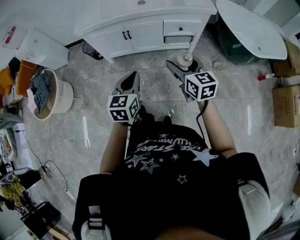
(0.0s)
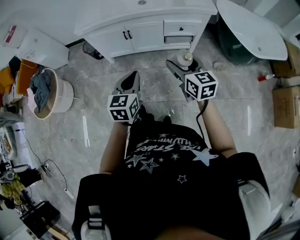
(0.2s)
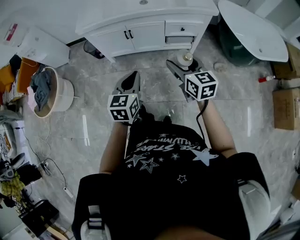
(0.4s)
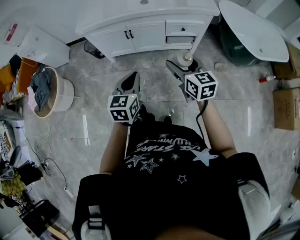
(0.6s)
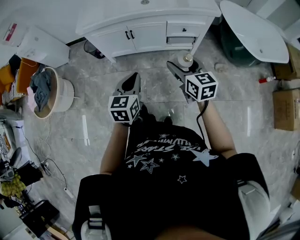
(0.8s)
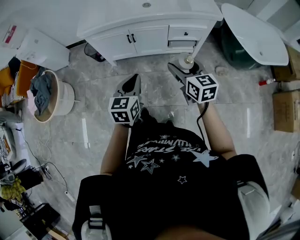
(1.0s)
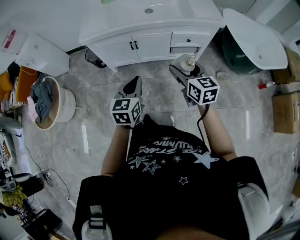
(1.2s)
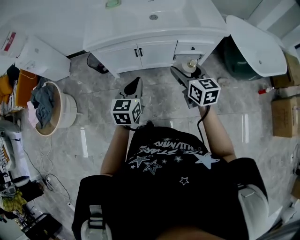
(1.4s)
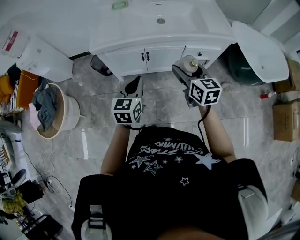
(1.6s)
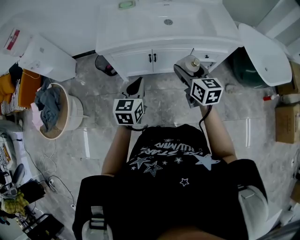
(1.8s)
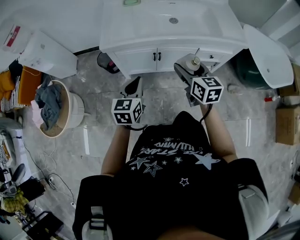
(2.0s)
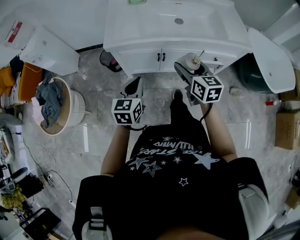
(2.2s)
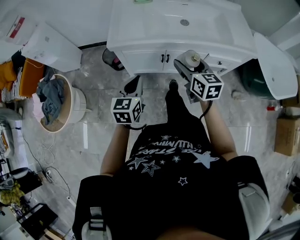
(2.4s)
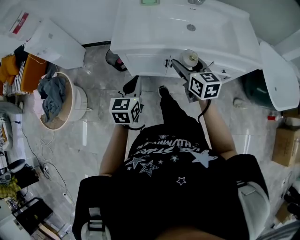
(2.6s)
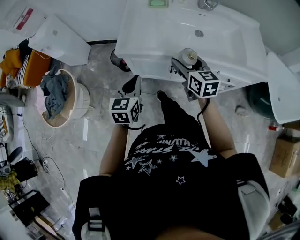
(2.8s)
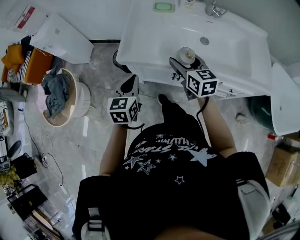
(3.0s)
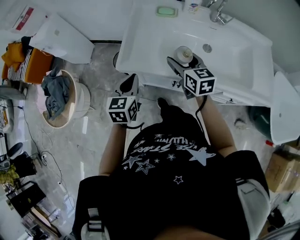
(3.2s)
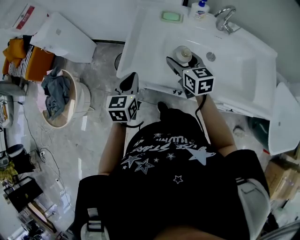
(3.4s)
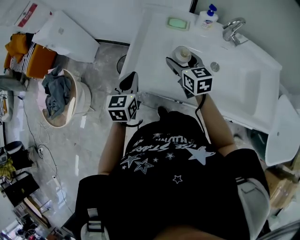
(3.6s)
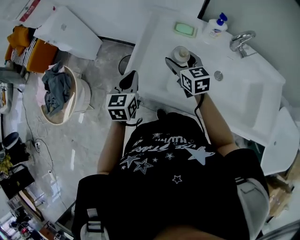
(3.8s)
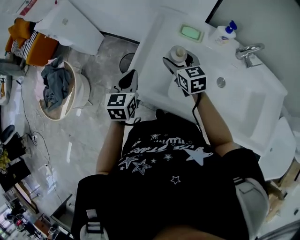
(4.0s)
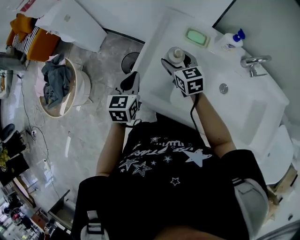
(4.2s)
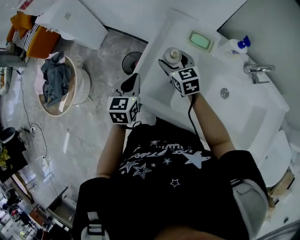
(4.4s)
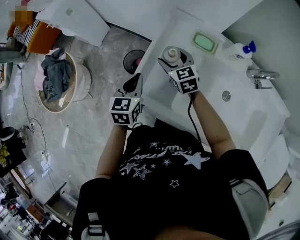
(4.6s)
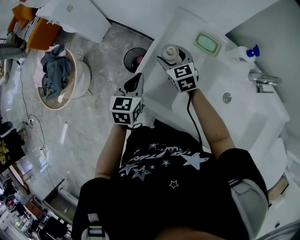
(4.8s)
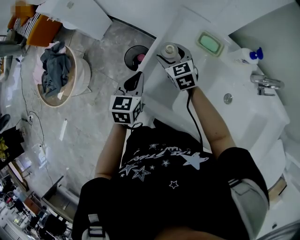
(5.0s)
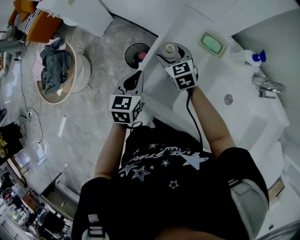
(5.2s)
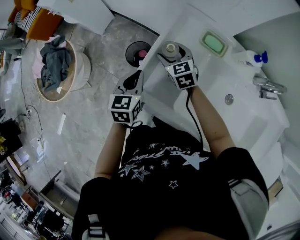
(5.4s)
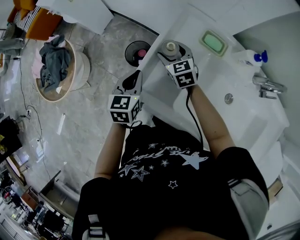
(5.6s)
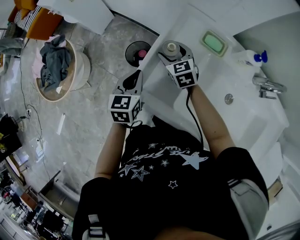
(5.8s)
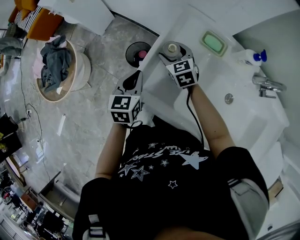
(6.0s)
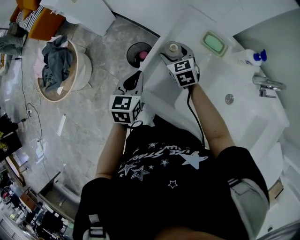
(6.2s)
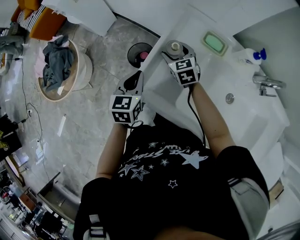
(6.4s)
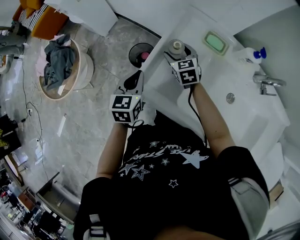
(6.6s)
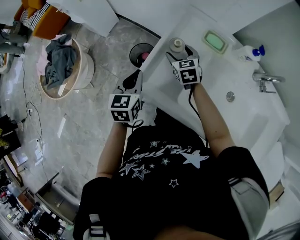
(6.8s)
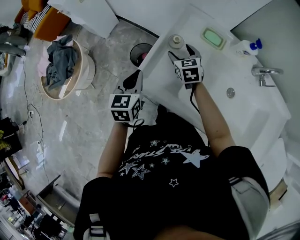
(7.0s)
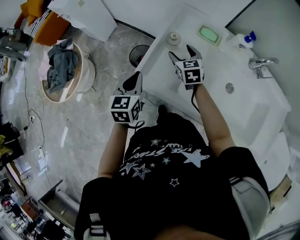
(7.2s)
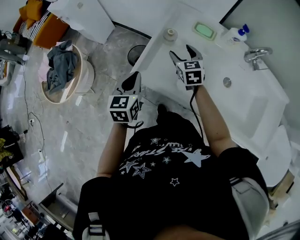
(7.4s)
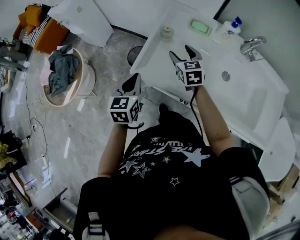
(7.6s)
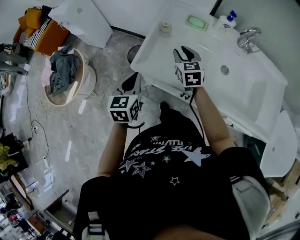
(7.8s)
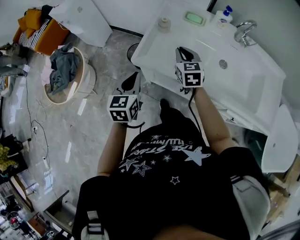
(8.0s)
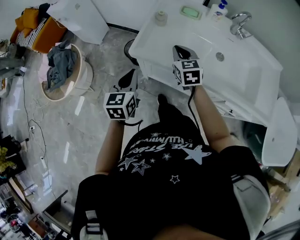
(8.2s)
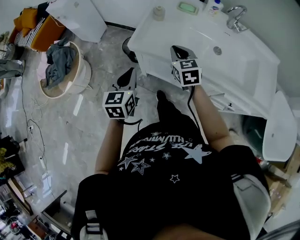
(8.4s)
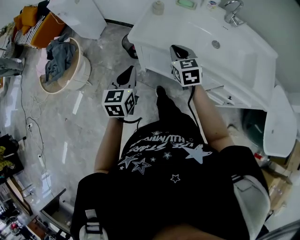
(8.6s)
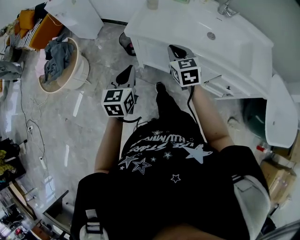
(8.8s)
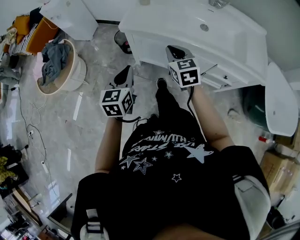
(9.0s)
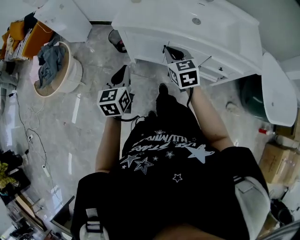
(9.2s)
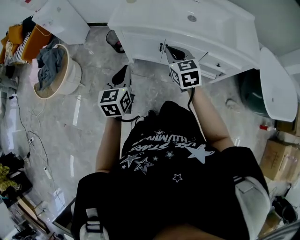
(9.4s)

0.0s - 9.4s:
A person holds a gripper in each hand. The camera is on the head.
0.0s - 1.6s: The two grippers go approximately 20 cm forward and to the left.
1.6s - 3.2s: The grippers both shift forward and to the left by approximately 35 cm. The right gripper turns by roughly 20 degrees.
3.2s - 4.8s: Both grippers move forward, approximately 25 cm. The right gripper rotates approximately 30 degrees.
4.8s - 6.2s: The grippers stay close to where they were, moving slightly.
6.2s - 7.8s: Both grippers move backward and upward, some 20 cm. The right gripper swivels about 20 degrees, and closes.
7.8s - 9.4s: Both grippers travel together backward, about 35 cm. The right gripper closes.

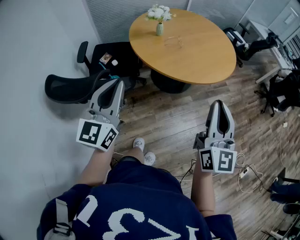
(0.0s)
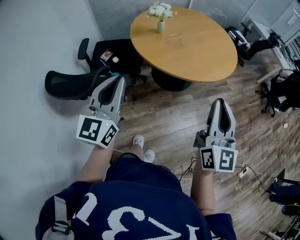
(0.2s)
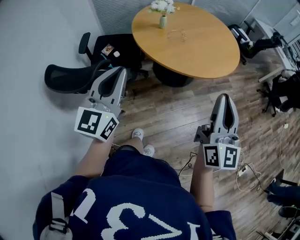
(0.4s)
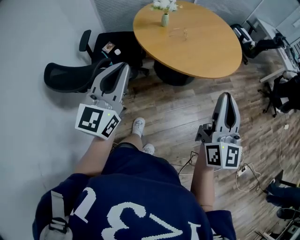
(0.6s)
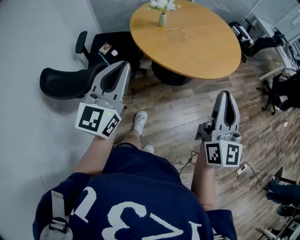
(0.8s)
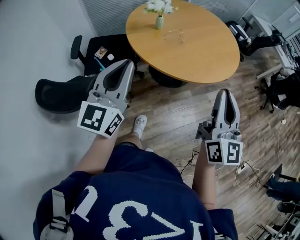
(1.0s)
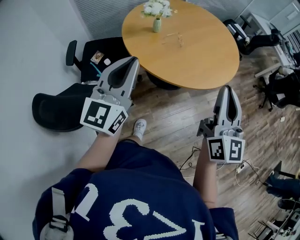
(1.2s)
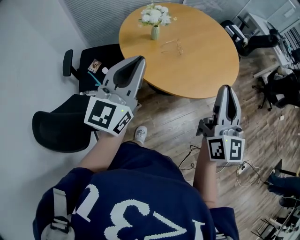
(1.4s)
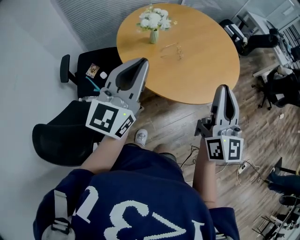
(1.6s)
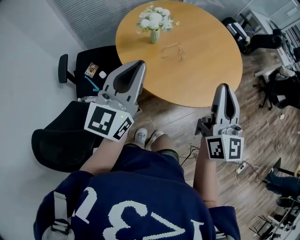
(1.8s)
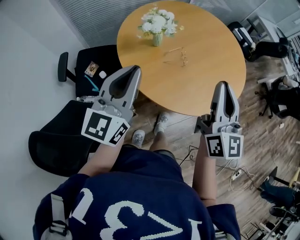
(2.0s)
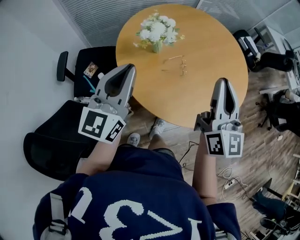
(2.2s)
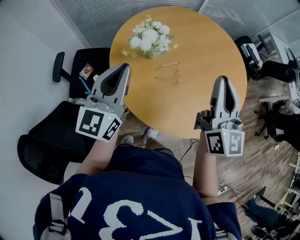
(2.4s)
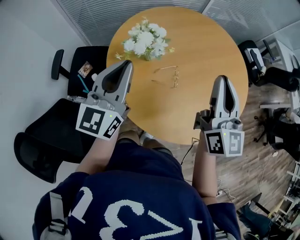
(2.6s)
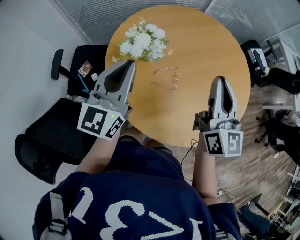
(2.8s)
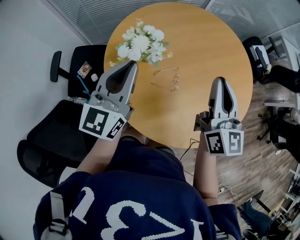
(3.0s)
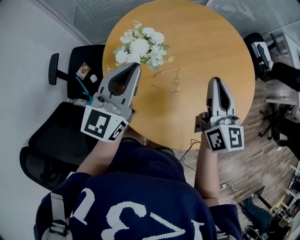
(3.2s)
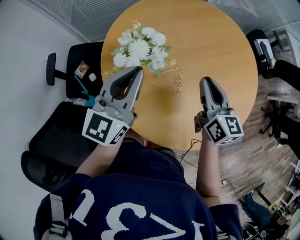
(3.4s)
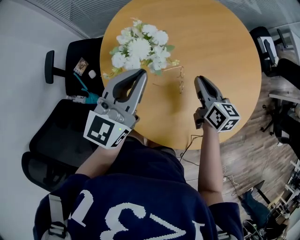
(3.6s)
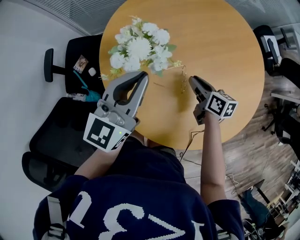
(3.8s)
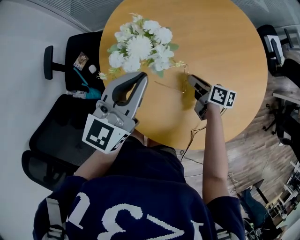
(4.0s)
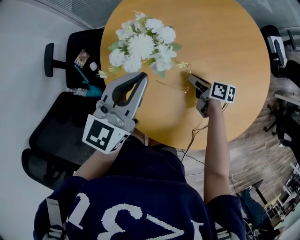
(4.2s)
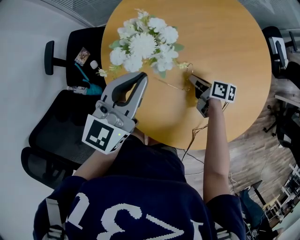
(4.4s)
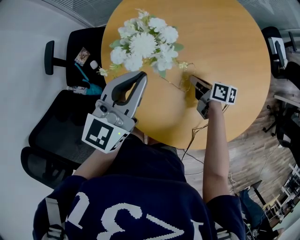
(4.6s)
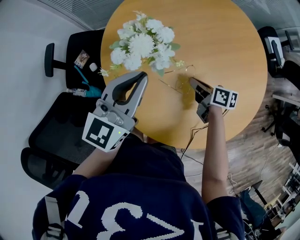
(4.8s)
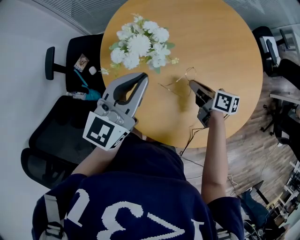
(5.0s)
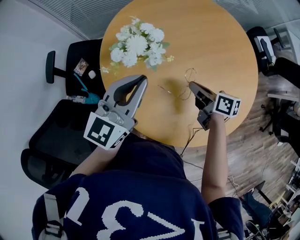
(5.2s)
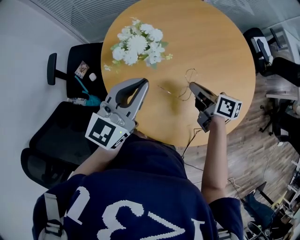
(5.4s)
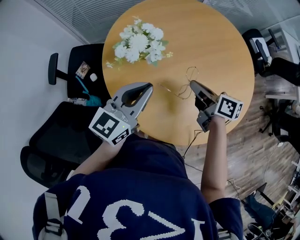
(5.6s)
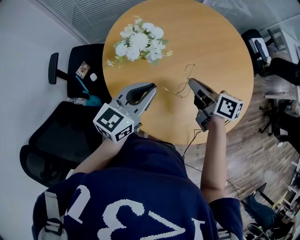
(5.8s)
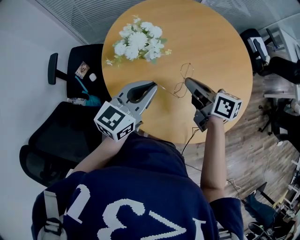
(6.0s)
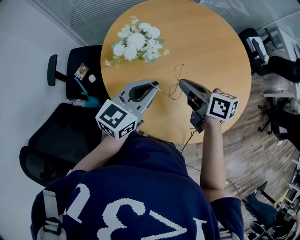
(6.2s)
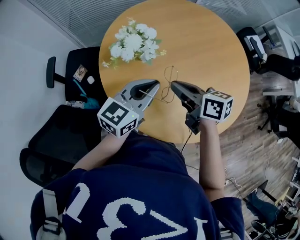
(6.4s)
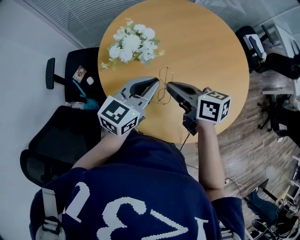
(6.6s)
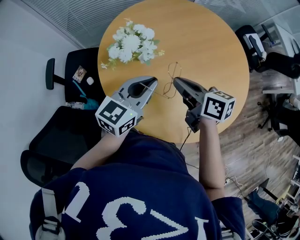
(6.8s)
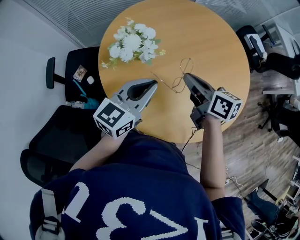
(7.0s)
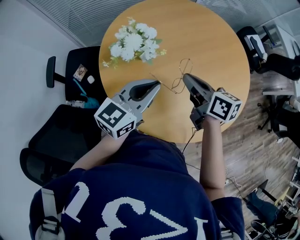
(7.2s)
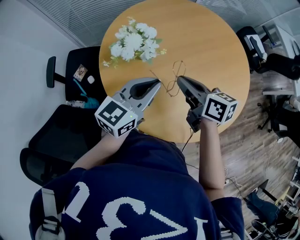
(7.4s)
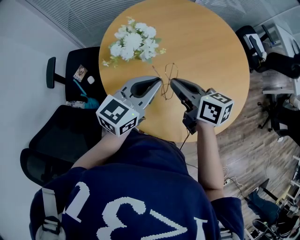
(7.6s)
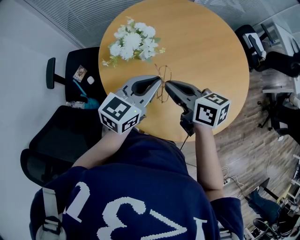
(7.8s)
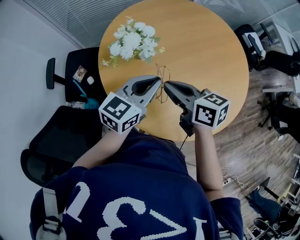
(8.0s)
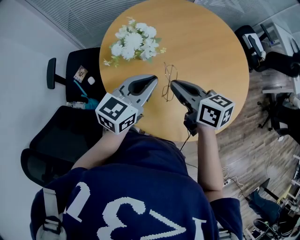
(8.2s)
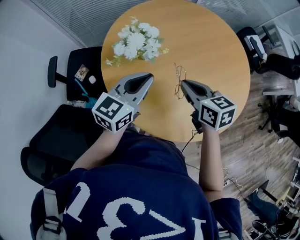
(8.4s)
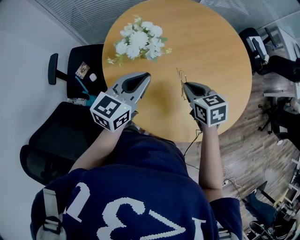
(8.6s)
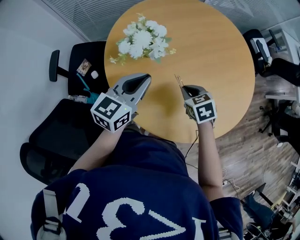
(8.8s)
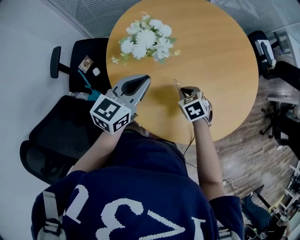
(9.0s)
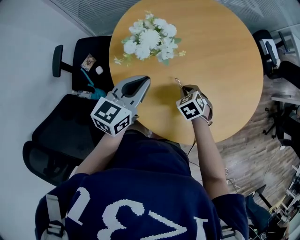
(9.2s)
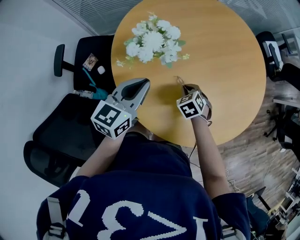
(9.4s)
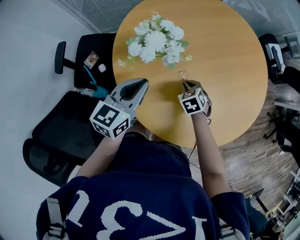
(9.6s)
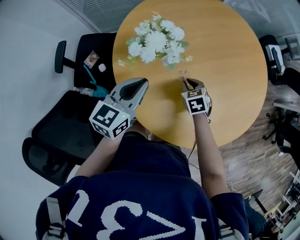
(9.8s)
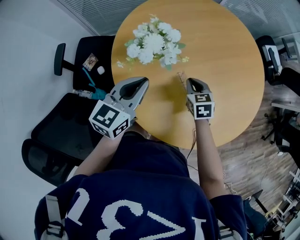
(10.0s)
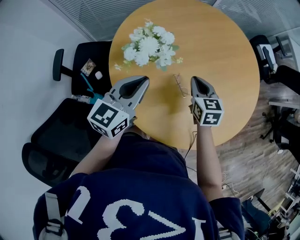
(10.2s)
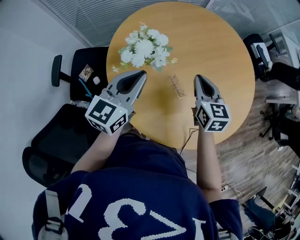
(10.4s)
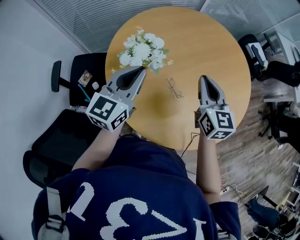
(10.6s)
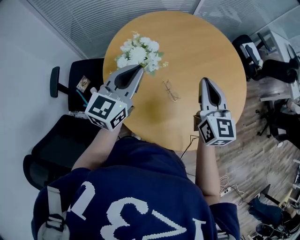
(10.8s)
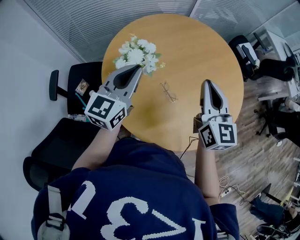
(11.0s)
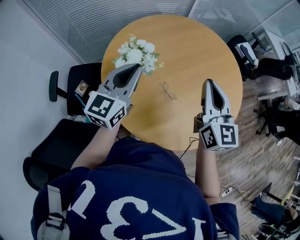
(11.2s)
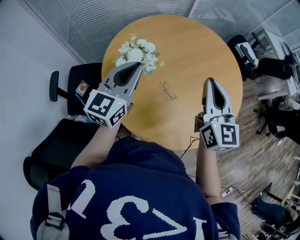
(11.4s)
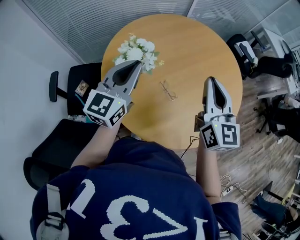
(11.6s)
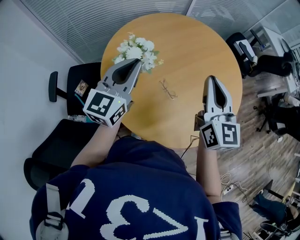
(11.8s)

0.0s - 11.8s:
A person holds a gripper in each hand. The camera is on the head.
0.0s - 1.4s: Both grippers travel together forward, about 20 cm.
1.4s - 3.0s: The two grippers go approximately 35 cm forward. The right gripper swivels some 20 degrees.
3.0s - 4.4s: The left gripper goes about 10 cm downward. Meanwhile the right gripper shifts roughly 35 cm downward, and angles its fingers downward, by some 40 degrees.
4.4s - 6.0s: The right gripper shifts some 20 cm upward, and turns by some 20 degrees. Meanwhile the left gripper travels backward by about 10 cm.
6.0s - 7.4s: The grippers move only a little.
7.4s - 8.8s: The left gripper shifts some 5 cm to the left. Meanwhile the right gripper shifts about 15 cm downward, and tips its fingers downward by some 40 degrees.
8.8s - 10.4s: The left gripper ends up approximately 5 cm from where it was, while the right gripper is displaced upward and forward by roughly 15 cm, and tips its fingers upward by about 30 degrees.
10.4s - 11.8s: The right gripper travels upward and backward by roughly 15 cm, and rotates some 30 degrees. The left gripper shifts approximately 5 cm upward.

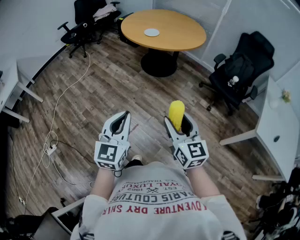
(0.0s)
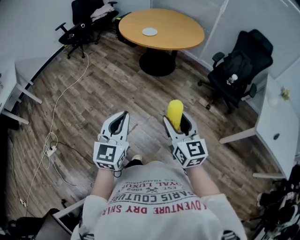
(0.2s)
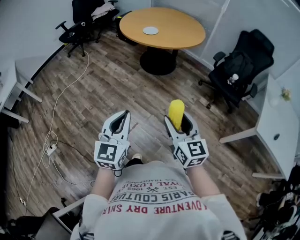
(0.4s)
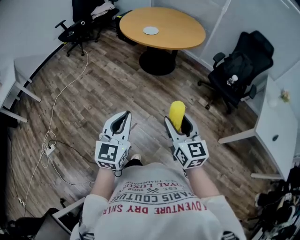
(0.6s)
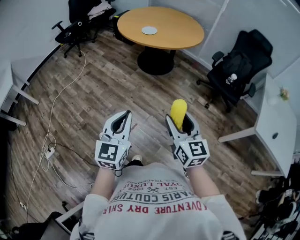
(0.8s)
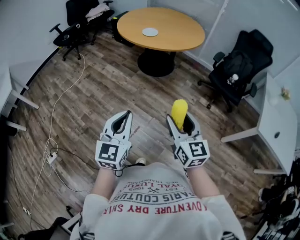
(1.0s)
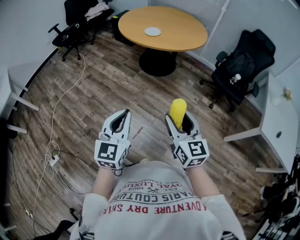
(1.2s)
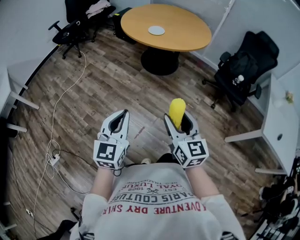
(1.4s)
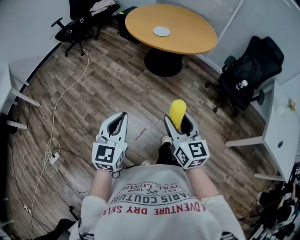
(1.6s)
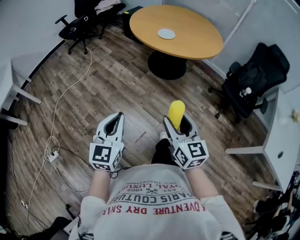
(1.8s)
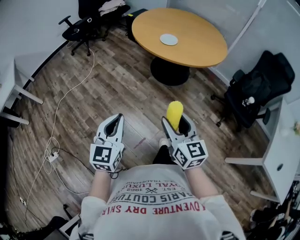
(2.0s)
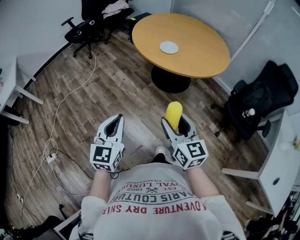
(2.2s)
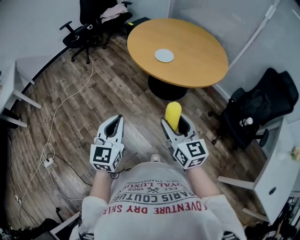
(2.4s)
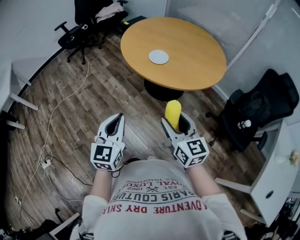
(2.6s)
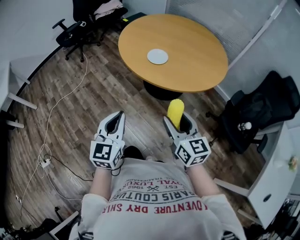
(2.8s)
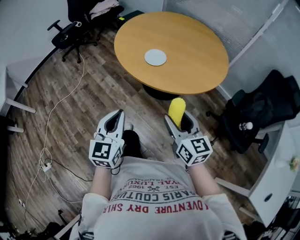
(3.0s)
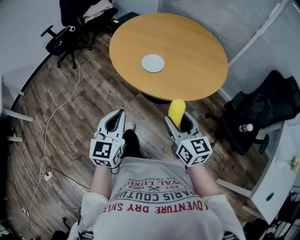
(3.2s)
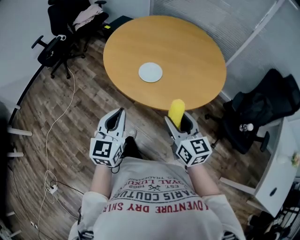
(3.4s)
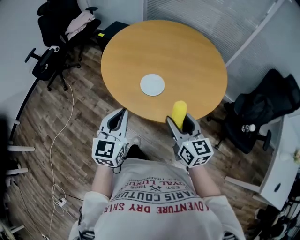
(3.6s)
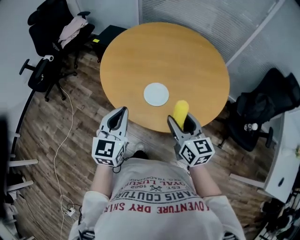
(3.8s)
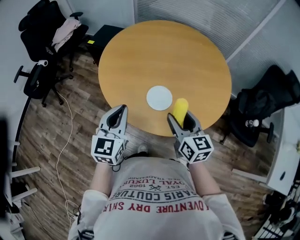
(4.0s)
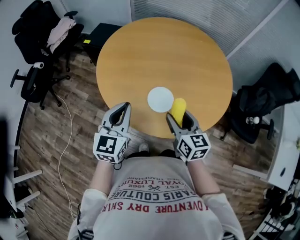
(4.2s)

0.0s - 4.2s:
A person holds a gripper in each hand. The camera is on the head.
0.0s - 1.4s: The two grippers go about 15 cm to the left and forward.
1.4s - 2.8s: The grippers both shift forward and to the right by approximately 35 cm.
2.8s - 4.2s: The right gripper changes place by roughly 35 cm, and swivels about 30 degrees. The left gripper changes place by some 50 cm, and swivels roughly 30 degrees.
